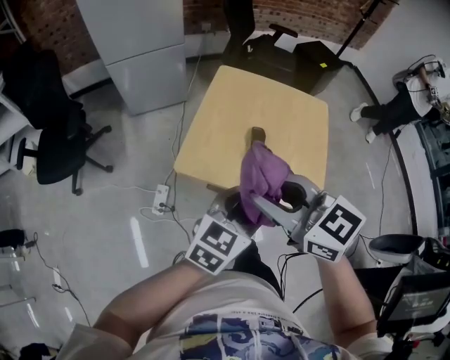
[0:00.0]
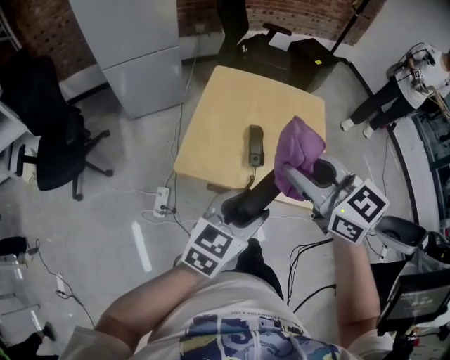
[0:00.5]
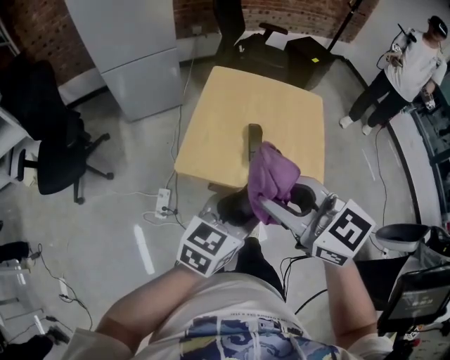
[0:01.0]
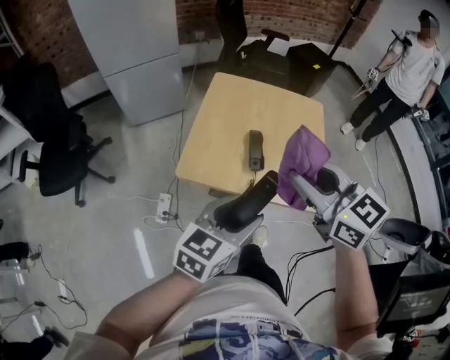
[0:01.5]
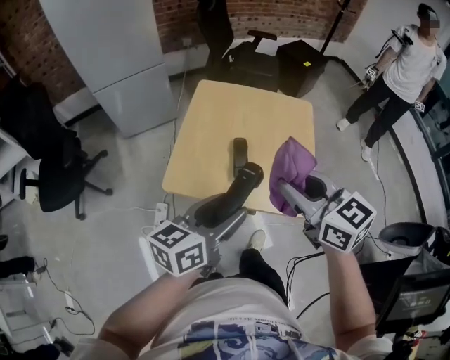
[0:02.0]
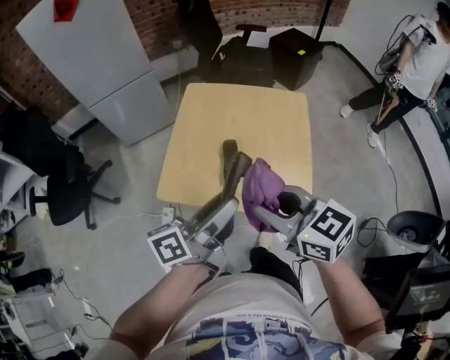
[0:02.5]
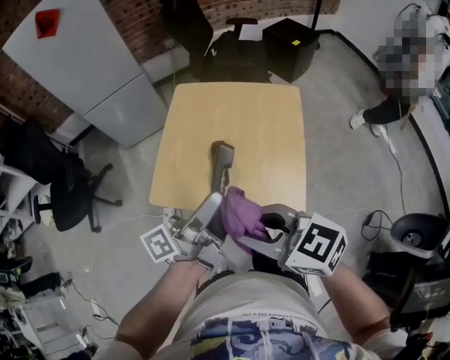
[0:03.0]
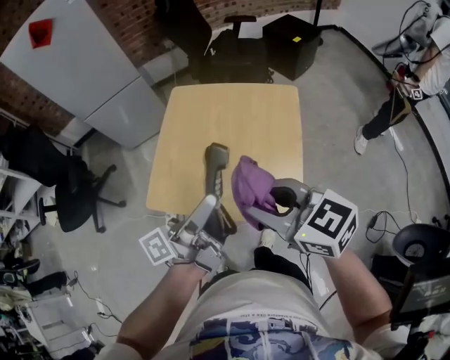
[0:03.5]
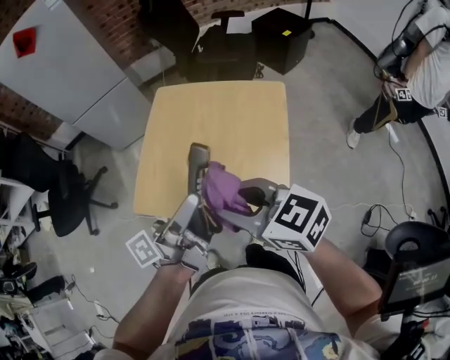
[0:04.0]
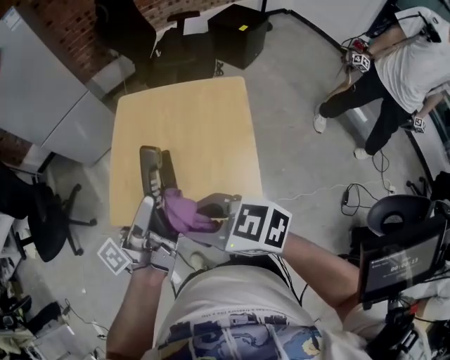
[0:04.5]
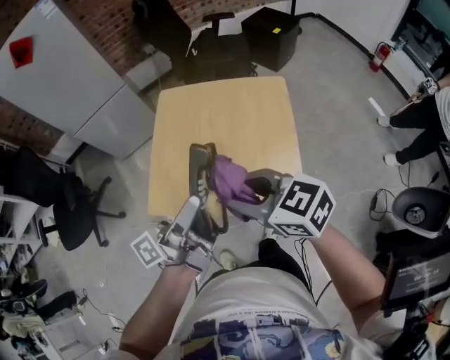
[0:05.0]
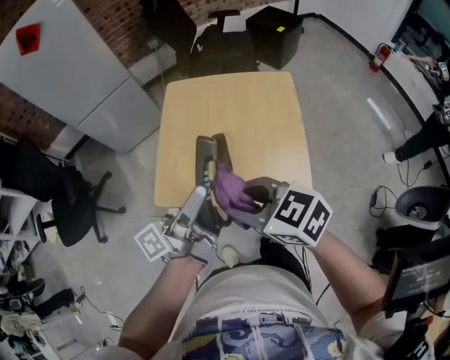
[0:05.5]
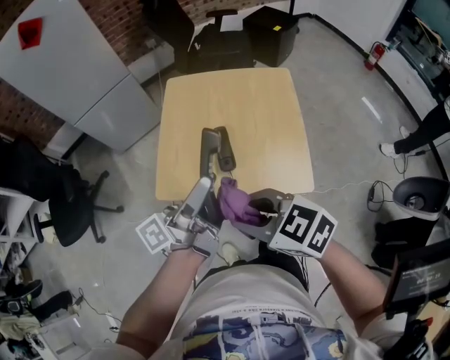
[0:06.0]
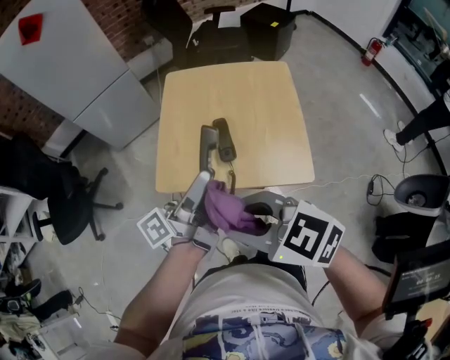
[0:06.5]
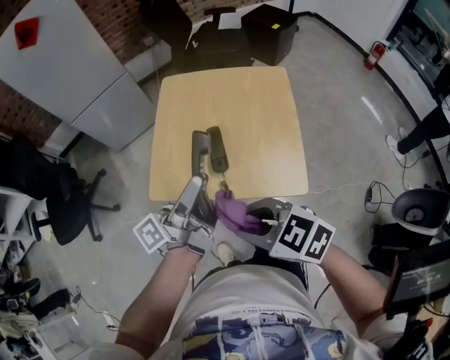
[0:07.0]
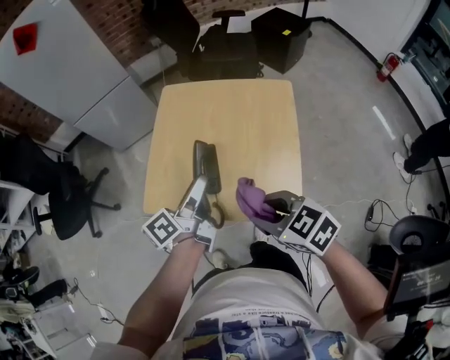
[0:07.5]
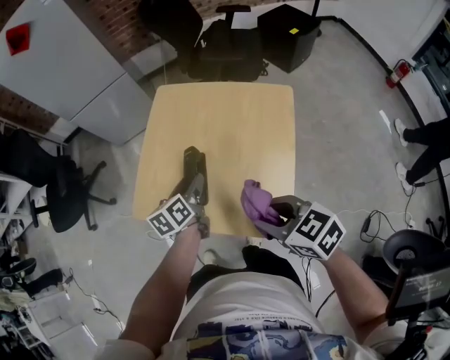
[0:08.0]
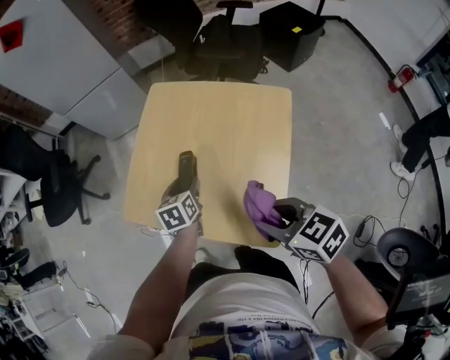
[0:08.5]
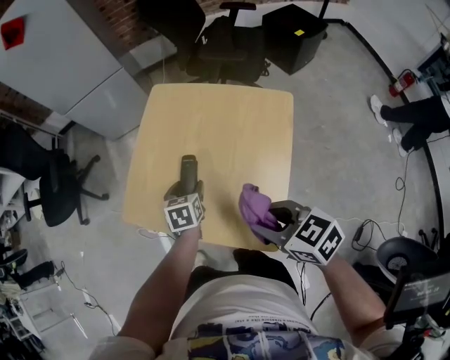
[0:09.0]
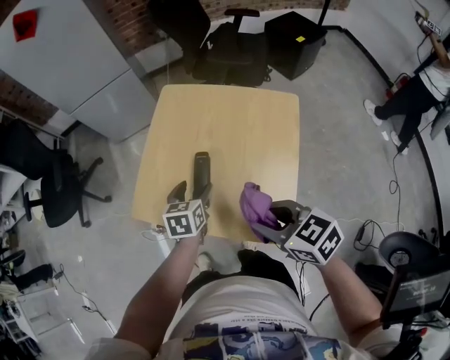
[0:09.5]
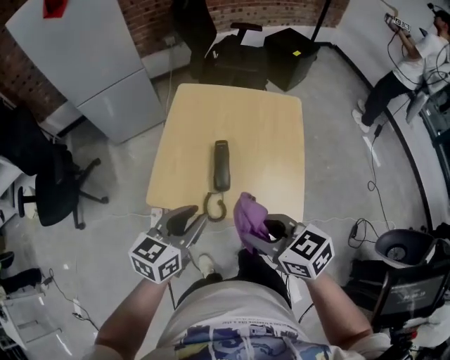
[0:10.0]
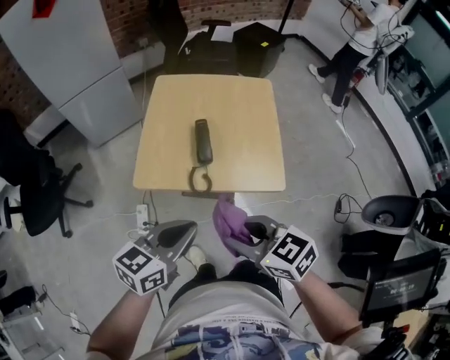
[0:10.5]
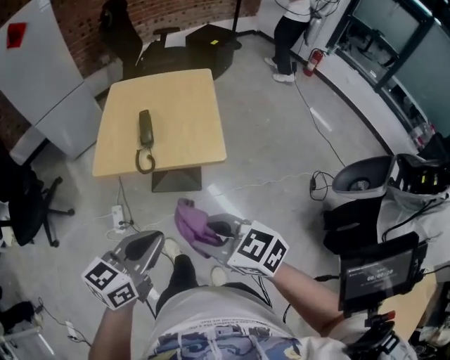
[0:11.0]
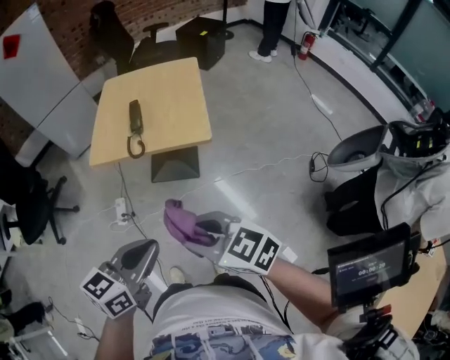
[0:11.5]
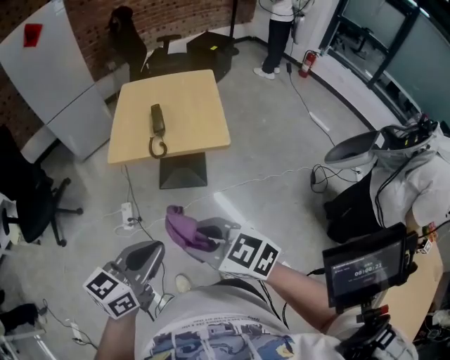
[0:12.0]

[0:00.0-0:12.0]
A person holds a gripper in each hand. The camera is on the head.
0:00.0 to 0:02.0: The right gripper moves left and right over some 10 cm, changing direction 2 times. Meanwhile the left gripper swivels about 30 degrees.
0:02.0 to 0:04.0: The left gripper moves to the right and forward, some 10 cm, and twists approximately 40 degrees counterclockwise, seen from behind. Meanwhile the right gripper swivels roughly 20 degrees.
0:04.0 to 0:06.0: The left gripper goes approximately 10 cm to the left, while the right gripper is displaced to the left and backward by roughly 15 cm.
0:06.0 to 0:08.0: The left gripper moves downward and forward, some 25 cm, and tips its fingers downward by roughly 50 degrees. The right gripper goes some 20 cm to the right.
0:08.0 to 0:10.0: The left gripper shifts by roughly 20 cm, changes its angle by roughly 40 degrees, and closes up. The right gripper ends up roughly 15 cm from where it was.
0:10.0 to 0:12.0: Both grippers move backward, approximately 30 cm. The left gripper closes its fingers.

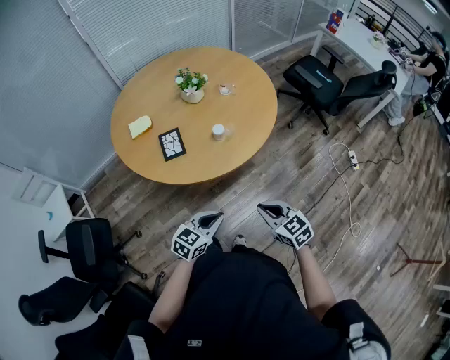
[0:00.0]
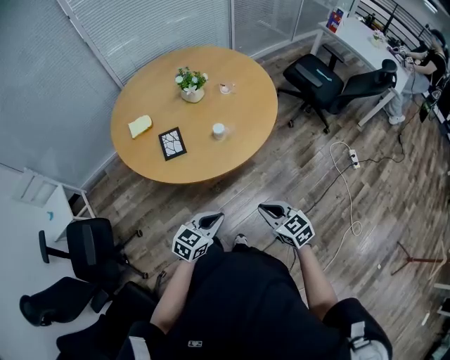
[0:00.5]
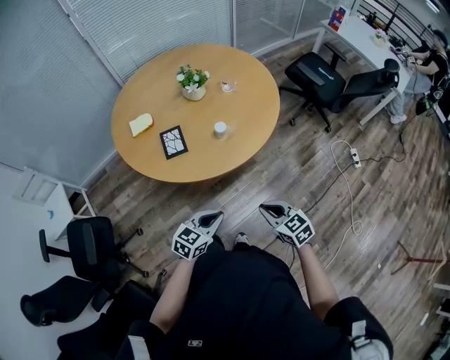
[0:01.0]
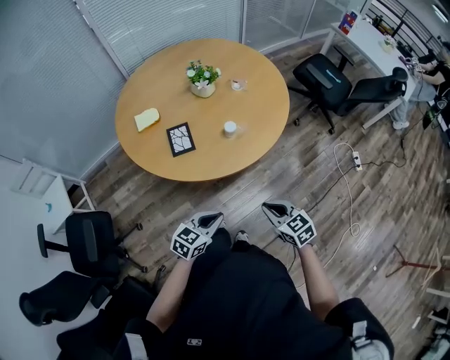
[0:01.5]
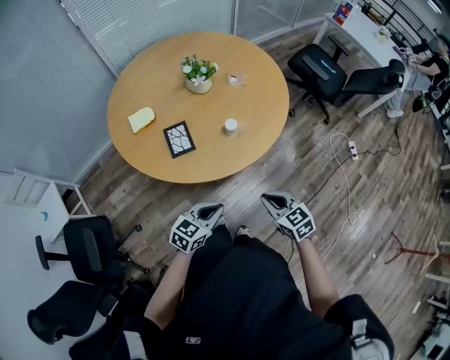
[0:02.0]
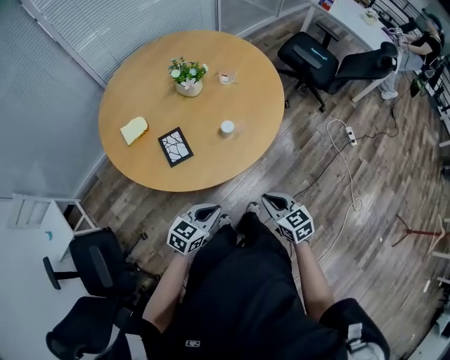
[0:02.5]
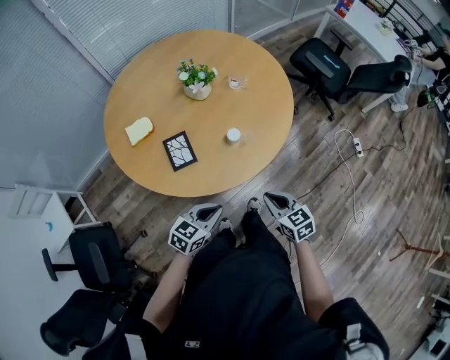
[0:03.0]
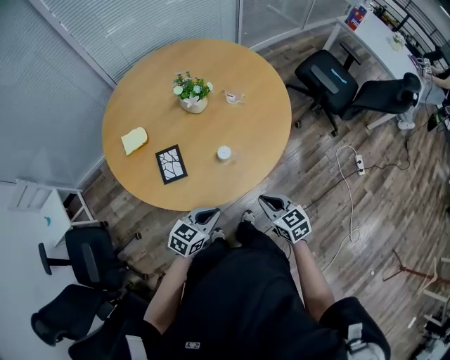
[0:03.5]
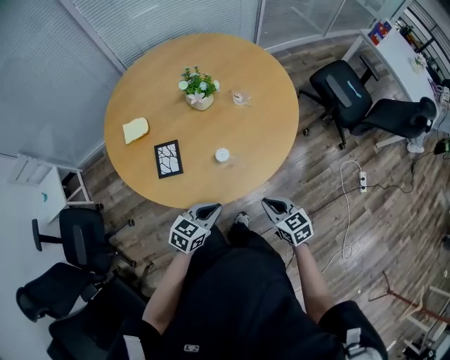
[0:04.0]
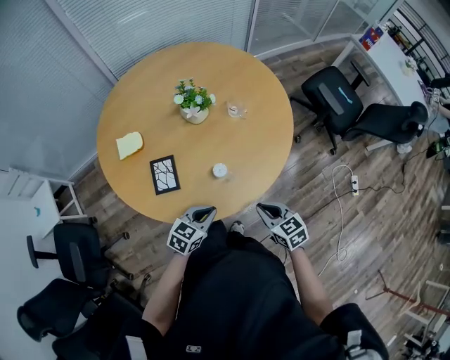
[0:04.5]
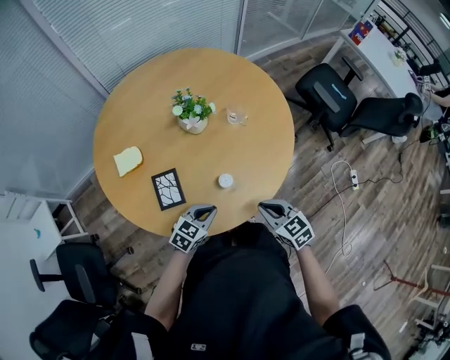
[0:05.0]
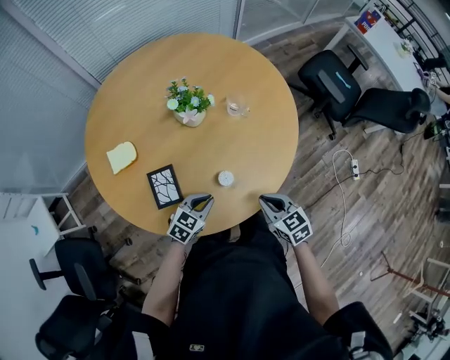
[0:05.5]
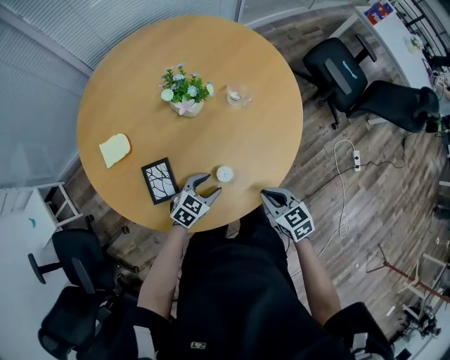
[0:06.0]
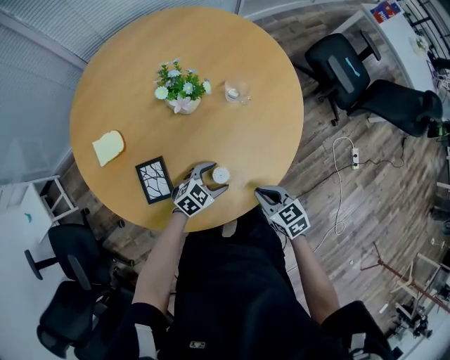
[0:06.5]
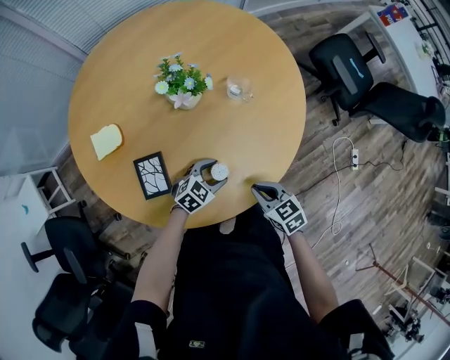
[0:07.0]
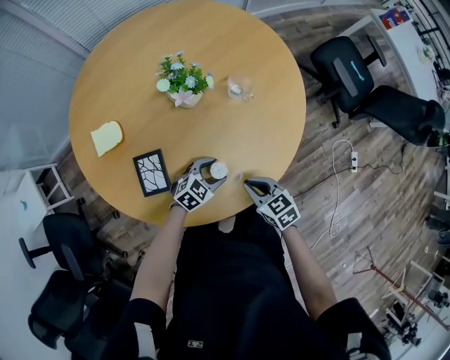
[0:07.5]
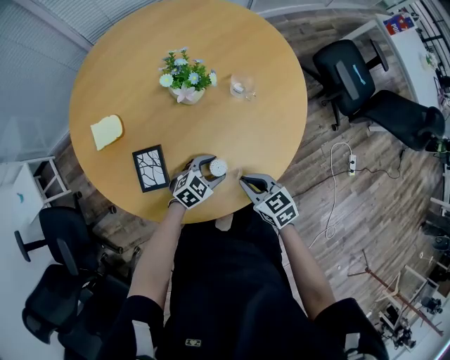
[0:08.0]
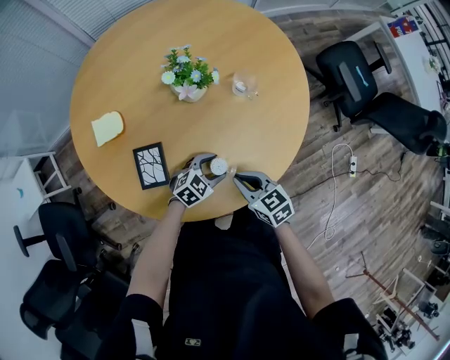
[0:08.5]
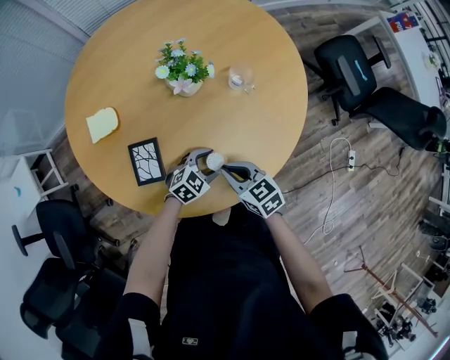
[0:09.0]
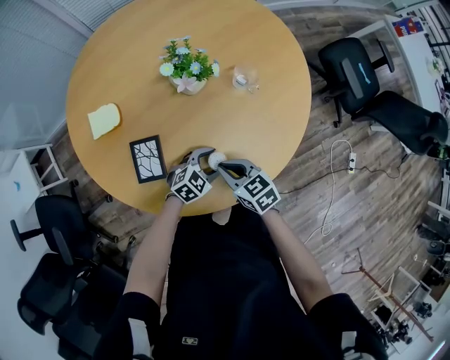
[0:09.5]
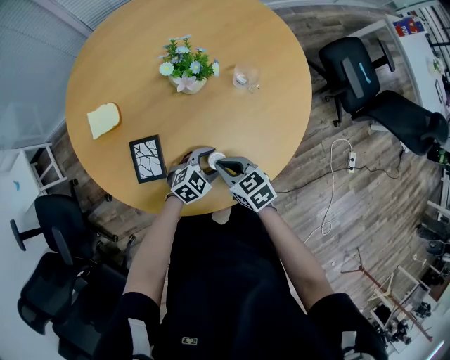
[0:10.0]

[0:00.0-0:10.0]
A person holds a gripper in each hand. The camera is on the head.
0:00.0 to 0:02.0: The two grippers go some 10 cm to the left and forward.
0:02.0 to 0:04.0: The grippers both shift forward and to the right by some 15 cm.
0:04.0 to 0:06.0: The right gripper moves forward, some 10 cm. Meanwhile the left gripper travels forward and downward by some 20 cm, rotates about 20 degrees, and opens.
0:06.0 to 0:08.0: The right gripper ends up roughly 5 cm from where it was. The left gripper moves some 5 cm.
0:08.0 to 0:10.0: The right gripper goes approximately 5 cm to the left.

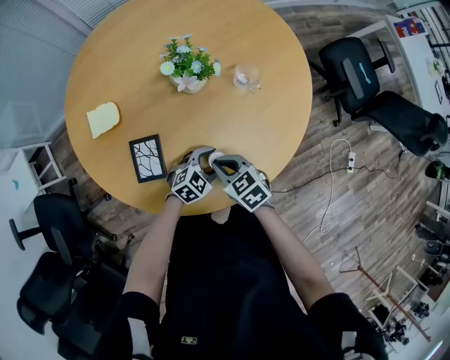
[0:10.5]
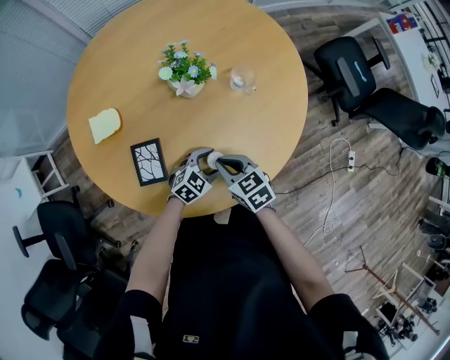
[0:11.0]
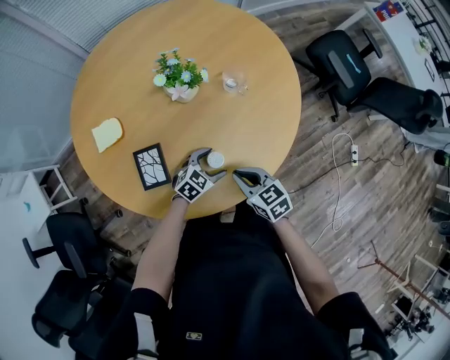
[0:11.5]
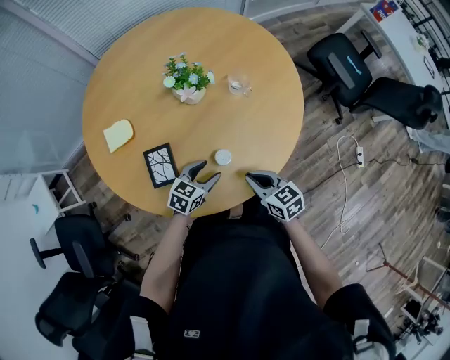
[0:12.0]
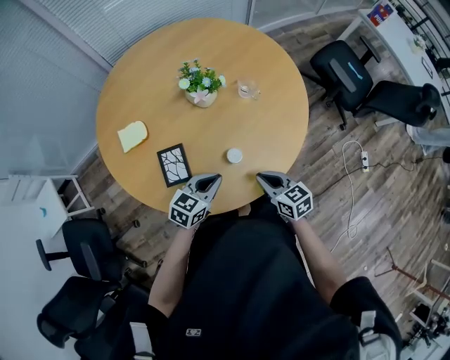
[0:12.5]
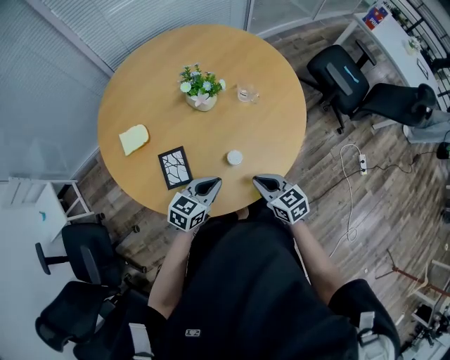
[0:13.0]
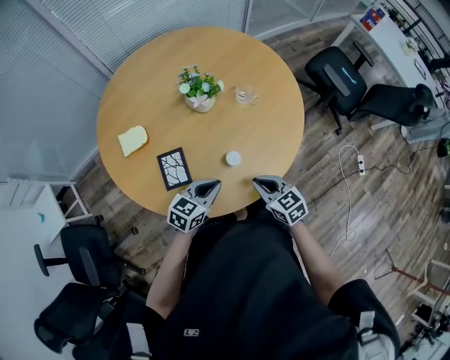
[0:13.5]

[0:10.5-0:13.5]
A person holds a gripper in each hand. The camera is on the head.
0:10.5 to 0:12.0: The right gripper changes place by about 10 cm, and swivels some 20 degrees. The left gripper moves roughly 5 cm, and turns by approximately 20 degrees.
0:12.0 to 0:13.5: The left gripper shifts some 10 cm upward and backward, and closes.

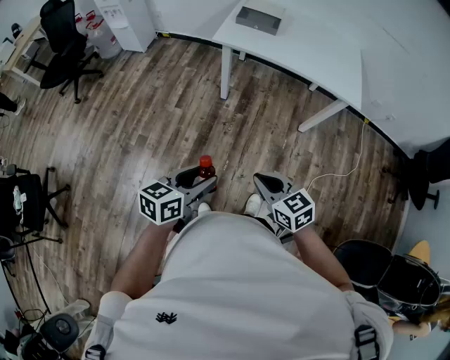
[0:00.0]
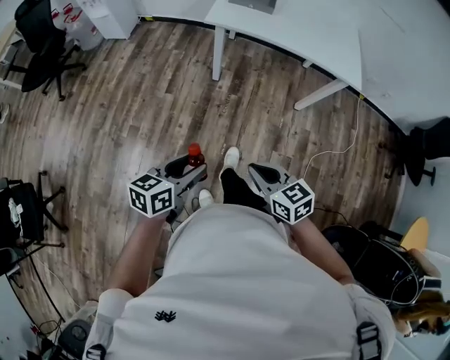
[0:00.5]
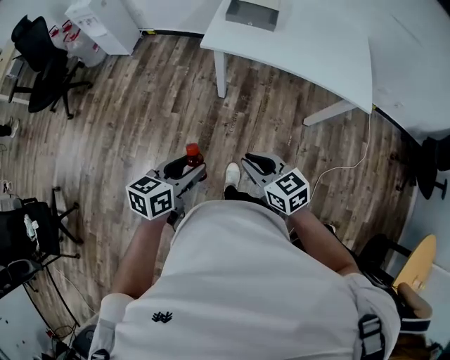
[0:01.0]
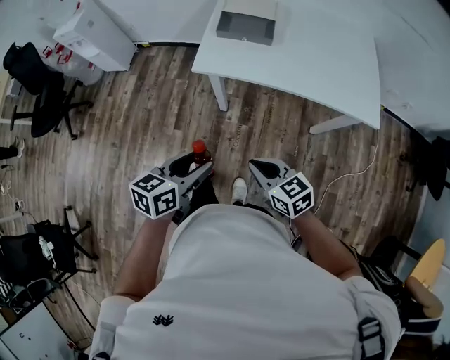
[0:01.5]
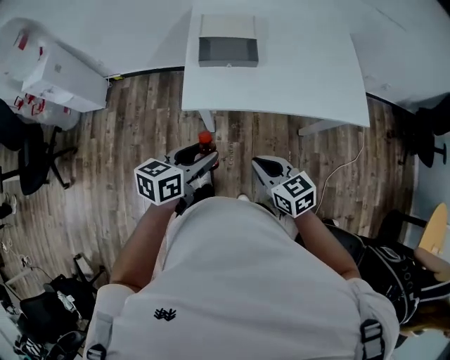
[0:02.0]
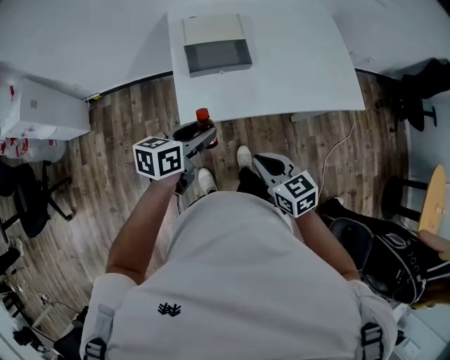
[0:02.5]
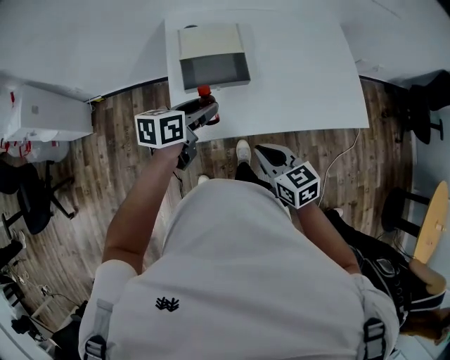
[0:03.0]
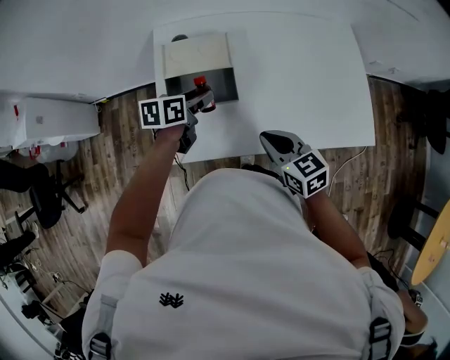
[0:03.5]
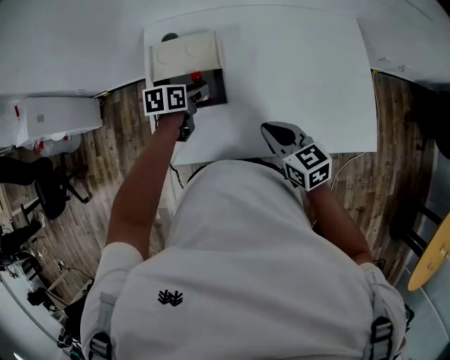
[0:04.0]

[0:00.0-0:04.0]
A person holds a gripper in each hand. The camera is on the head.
0:00.0 to 0:02.0: The two grippers go roughly 40 cm forward.
0:02.0 to 0:04.0: Both grippers travel together forward, roughly 35 cm. The left gripper swivels some 20 degrees.
